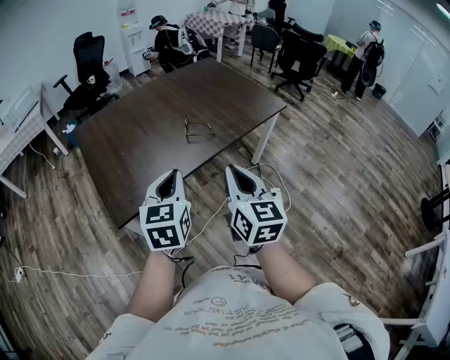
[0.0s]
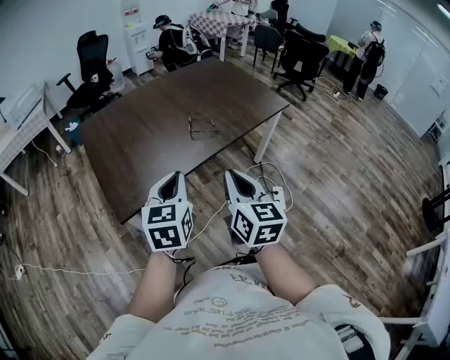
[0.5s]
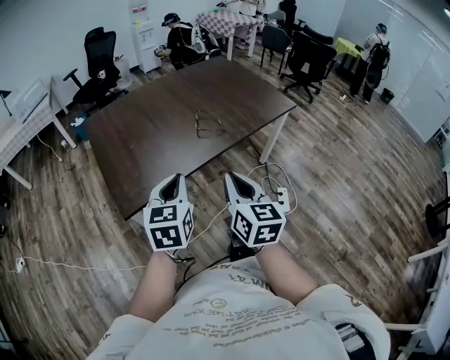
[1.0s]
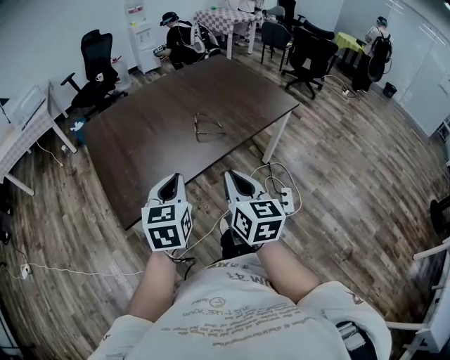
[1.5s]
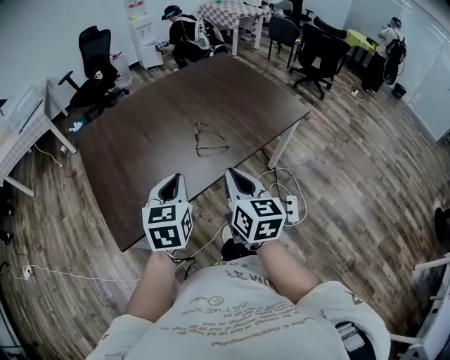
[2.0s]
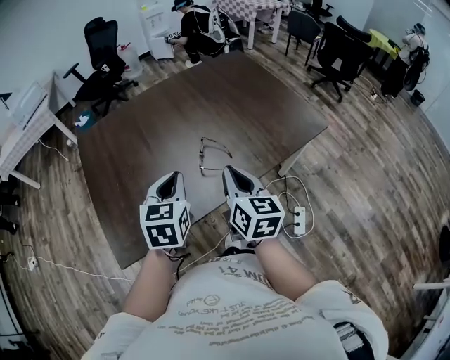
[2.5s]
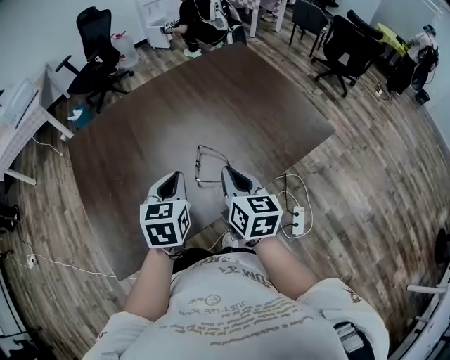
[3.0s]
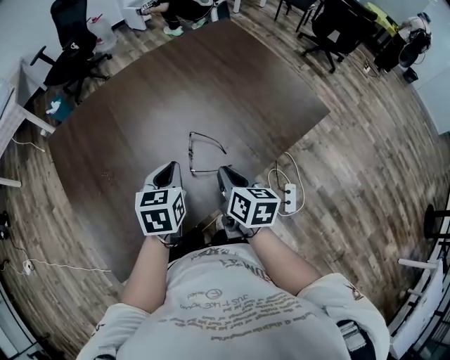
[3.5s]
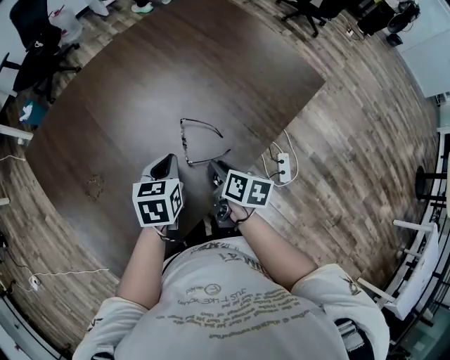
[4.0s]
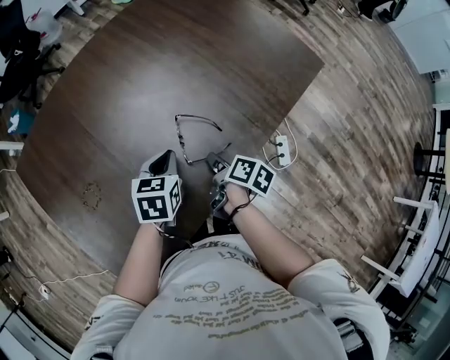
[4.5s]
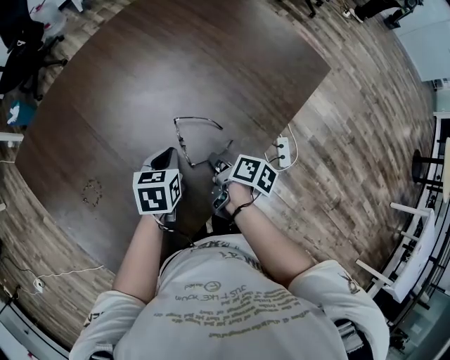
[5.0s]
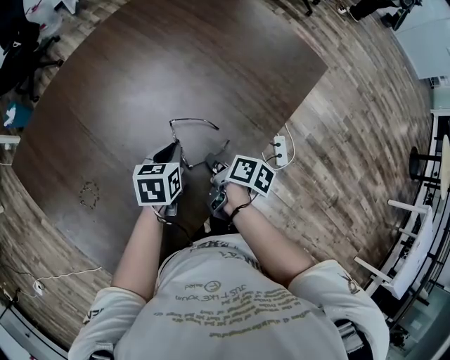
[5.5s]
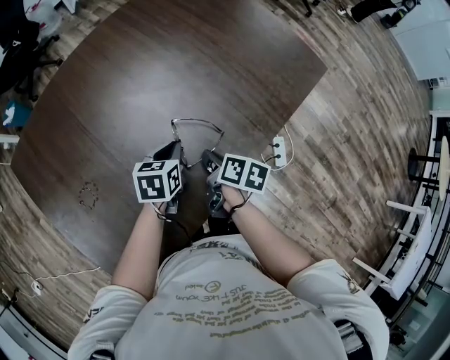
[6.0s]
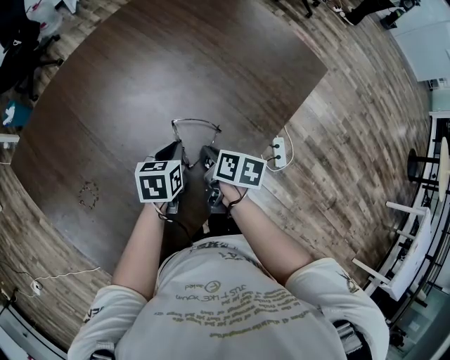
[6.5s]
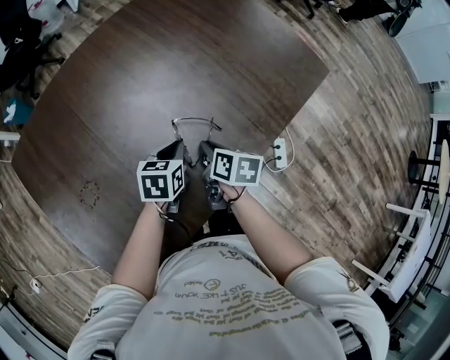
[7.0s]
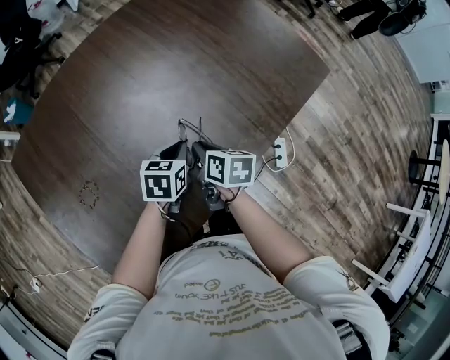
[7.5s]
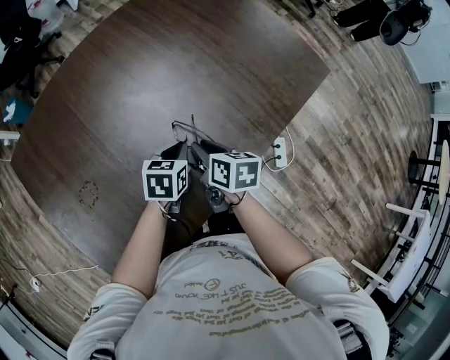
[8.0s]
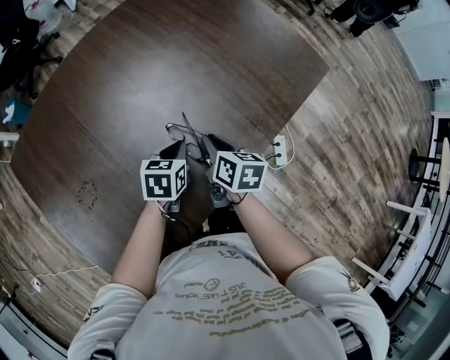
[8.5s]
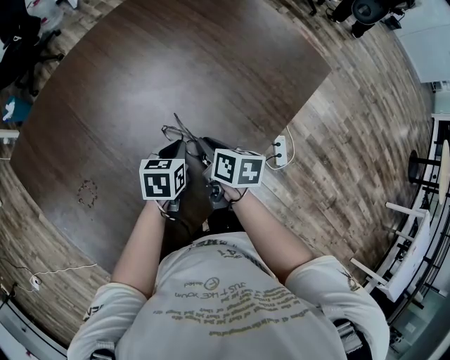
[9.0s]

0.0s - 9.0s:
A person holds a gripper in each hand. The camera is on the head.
0.0s - 2.0s: Both grippers travel together forward and downward, some 15 cm.
2.0s - 4.5s: The right gripper is displaced downward and forward by some 35 cm, rolls clockwise, seen from behind, by approximately 60 degrees, and opens, while the left gripper goes about 35 cm forward and downward, and turns by roughly 30 degrees.
4.5s - 7.0s: The left gripper ends up some 5 cm from where it was, while the right gripper changes place by about 5 cm, and turns by about 30 degrees.
7.0s - 9.0s: The grippers move only a little.

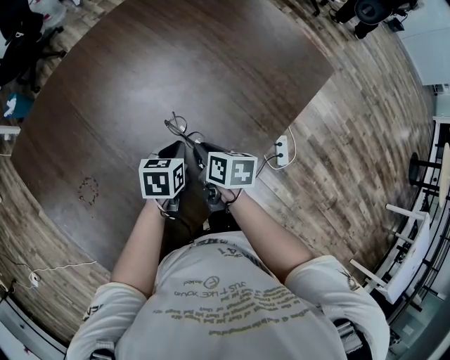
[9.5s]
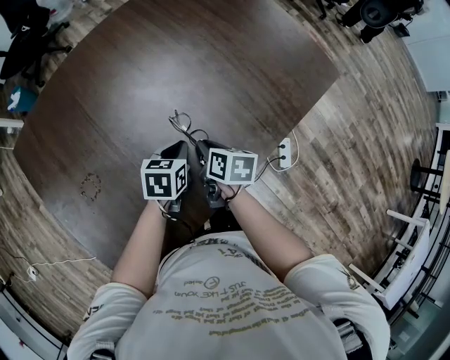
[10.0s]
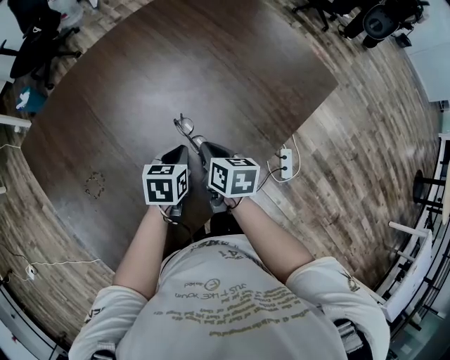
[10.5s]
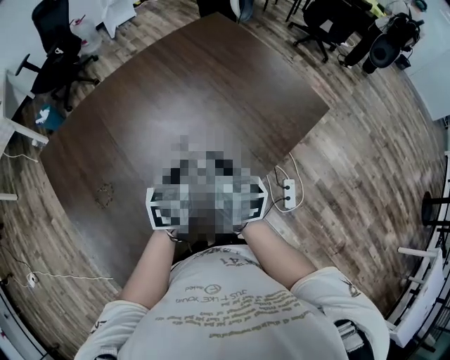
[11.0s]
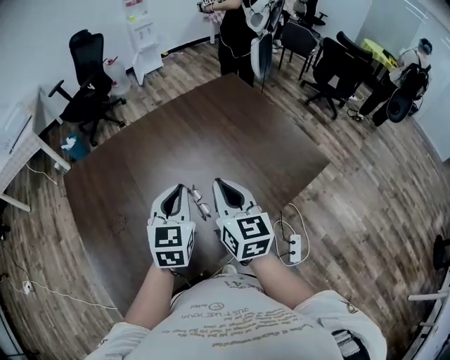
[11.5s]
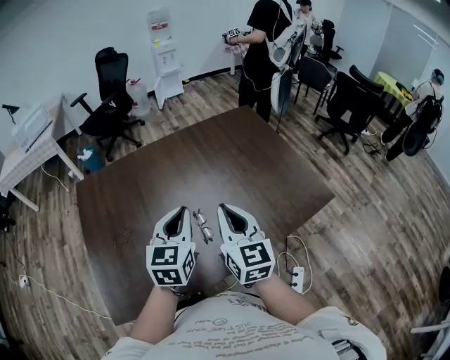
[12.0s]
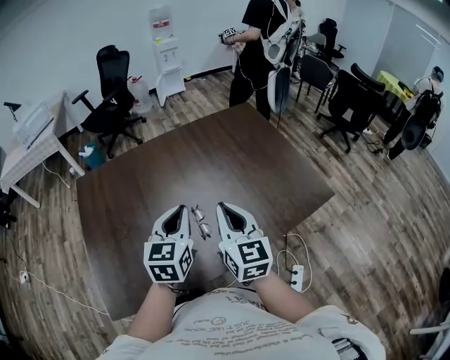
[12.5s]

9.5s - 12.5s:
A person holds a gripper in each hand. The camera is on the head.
9.5s - 11.0s: The grippers both shift upward by some 15 cm. The right gripper rotates some 30 degrees. The left gripper turns by roughly 20 degrees.
11.0s - 12.5s: The grippers both shift upward by about 15 cm. The left gripper changes its angle by approximately 30 degrees. The right gripper turns by about 30 degrees.

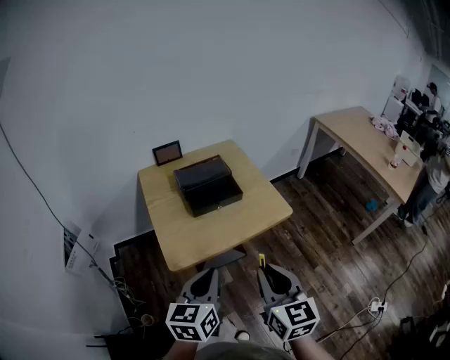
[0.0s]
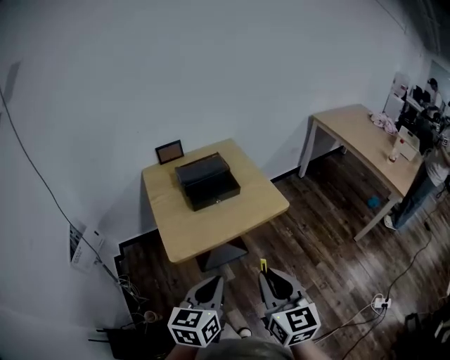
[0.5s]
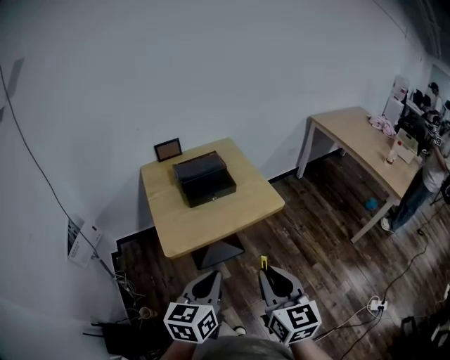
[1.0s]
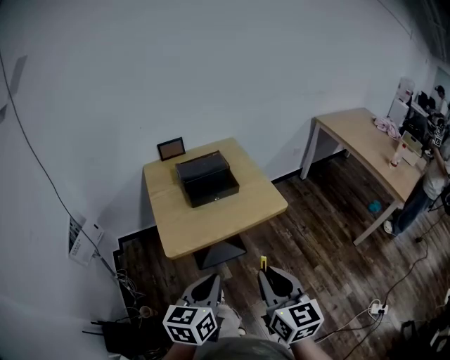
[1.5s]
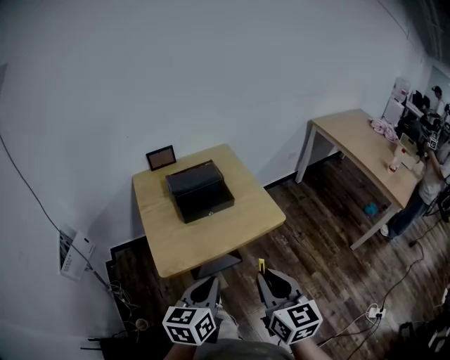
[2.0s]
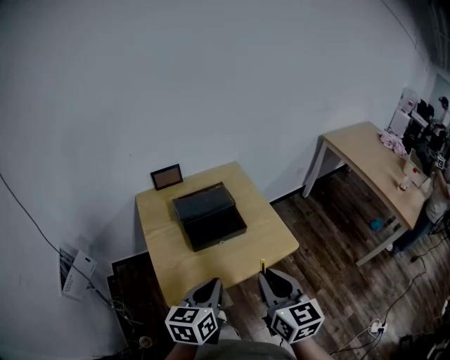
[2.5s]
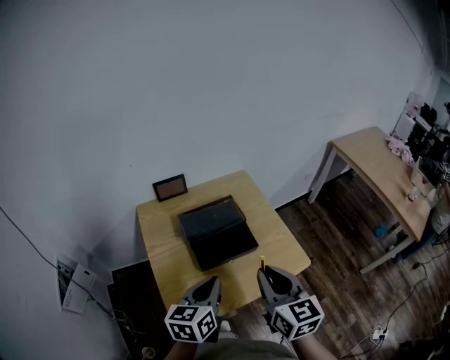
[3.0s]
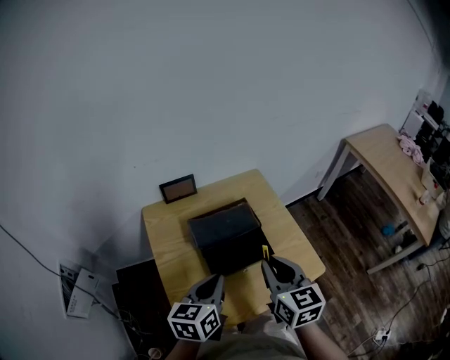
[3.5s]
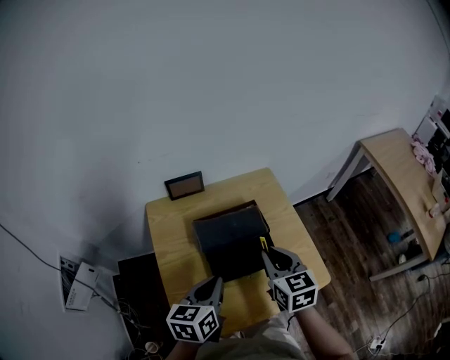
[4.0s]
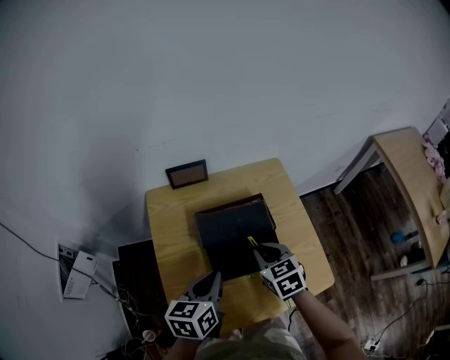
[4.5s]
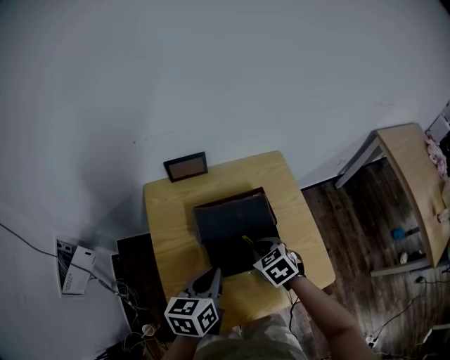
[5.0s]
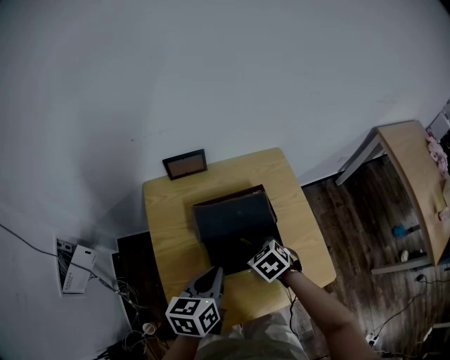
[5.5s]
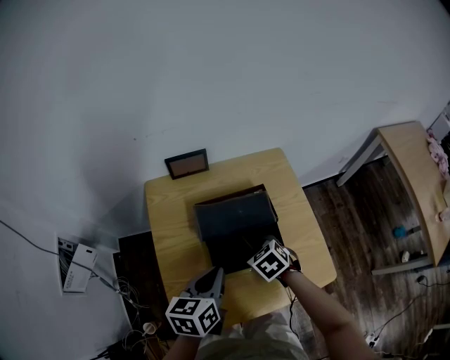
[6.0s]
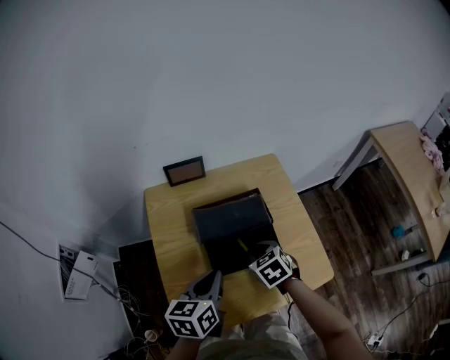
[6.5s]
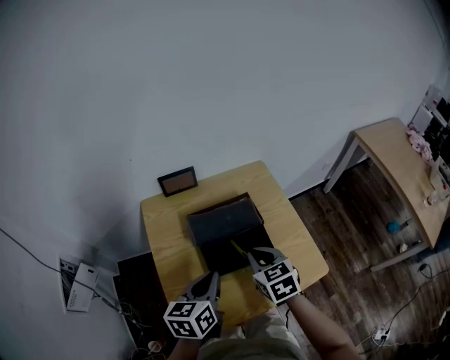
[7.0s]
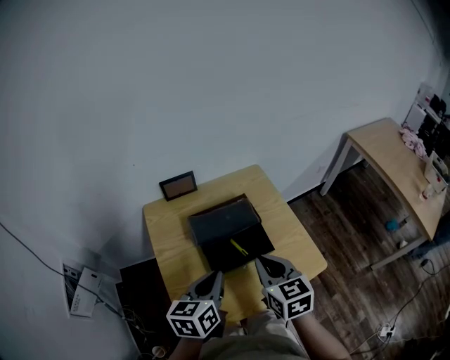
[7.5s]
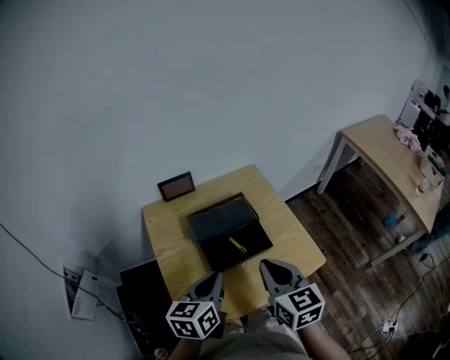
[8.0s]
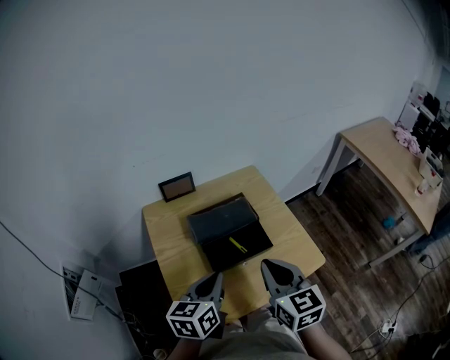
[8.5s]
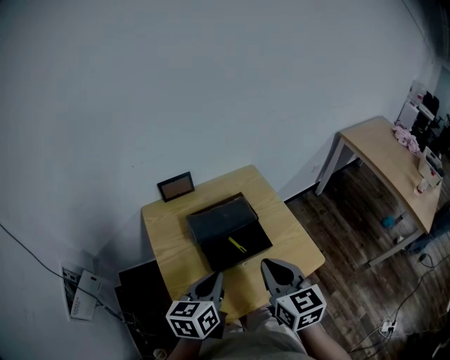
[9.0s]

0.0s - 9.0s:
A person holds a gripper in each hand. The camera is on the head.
0.0s - 2.0s: The right gripper goes backward and returns, roughly 5 cm each way; the left gripper goes backward and returns, approximately 5 cm each way.
2.0s - 4.5s: The left gripper shifts approximately 30 cm forward, while the right gripper moves forward and downward, about 40 cm, and turns by some 40 degrees.
4.5s - 7.0s: The right gripper reaches roughly 10 cm downward, then returns.
7.0s - 9.0s: The right gripper travels upward and backward by about 15 cm, and swivels approximately 20 degrees.

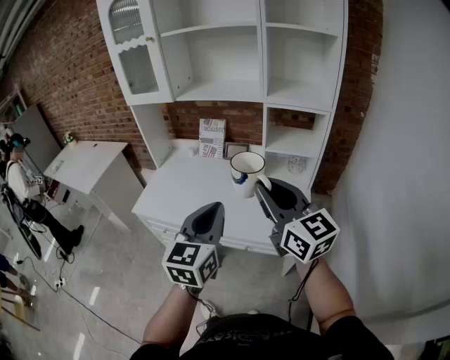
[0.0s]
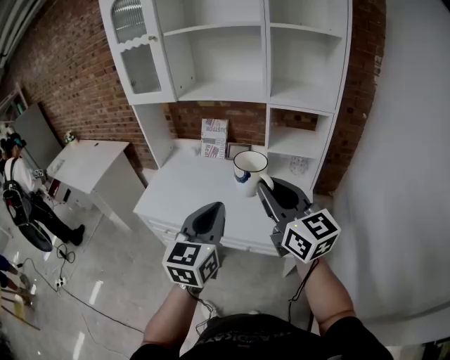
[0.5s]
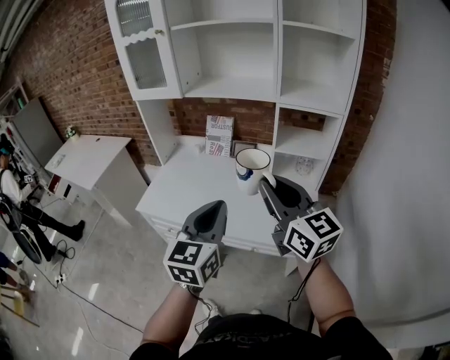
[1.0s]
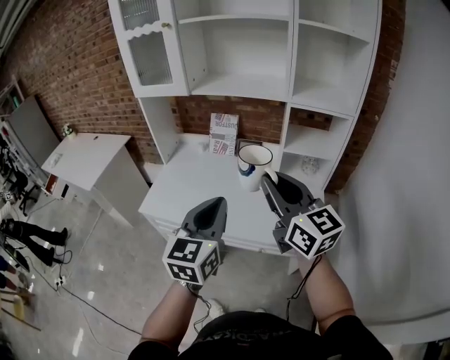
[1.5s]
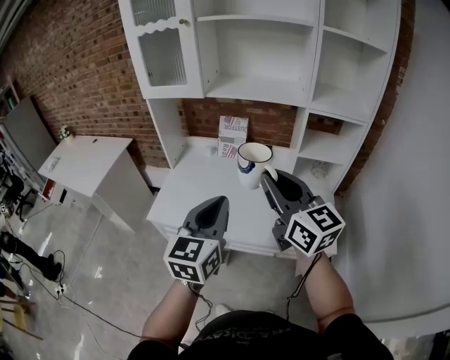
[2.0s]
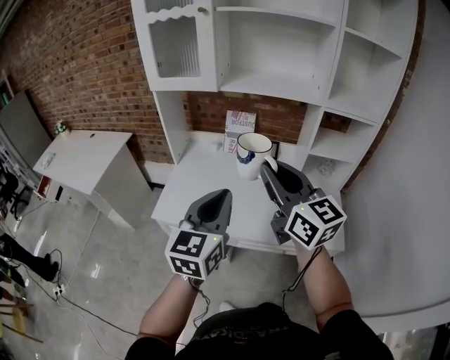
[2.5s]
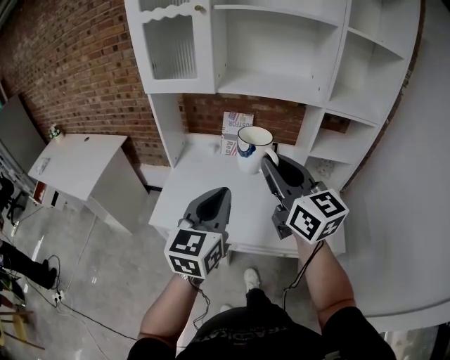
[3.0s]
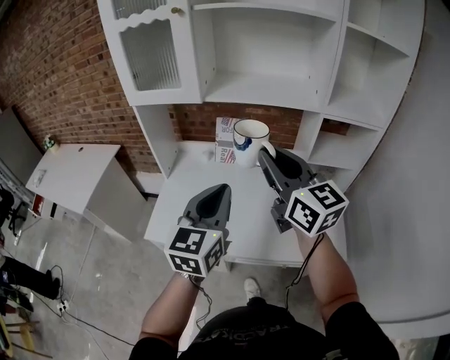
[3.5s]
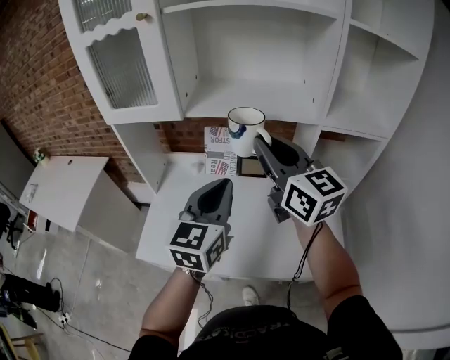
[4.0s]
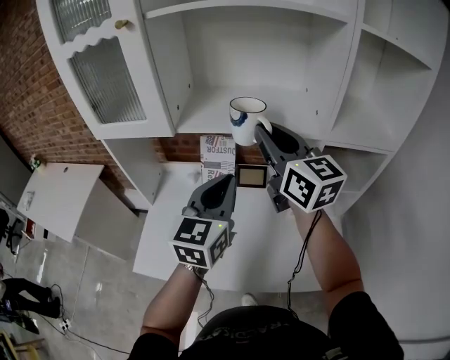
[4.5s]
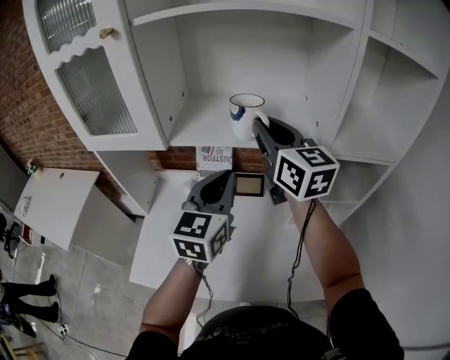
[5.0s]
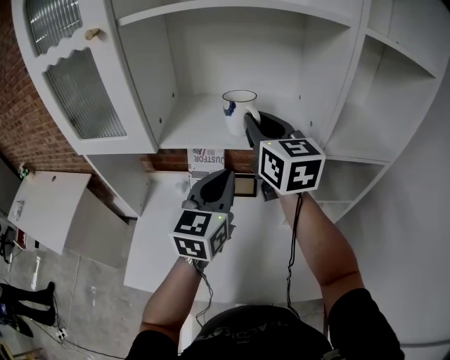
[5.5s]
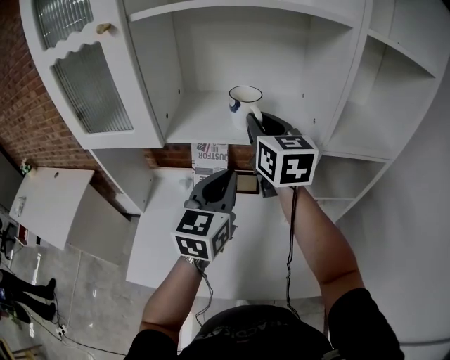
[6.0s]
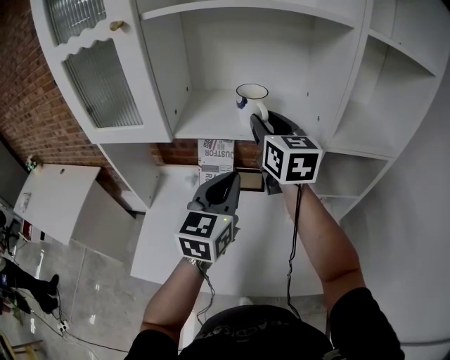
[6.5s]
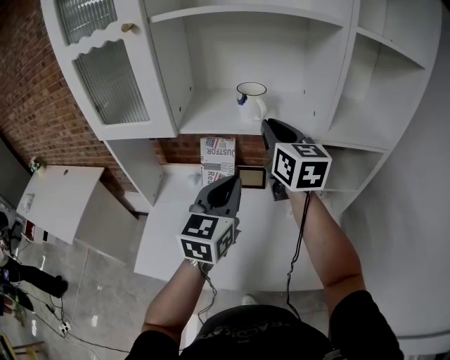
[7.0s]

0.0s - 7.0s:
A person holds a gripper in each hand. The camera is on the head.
0.0s - 2.0s: The grippers both shift to the left and forward by roughly 20 cm.
2.0s - 3.5s: The two grippers go roughly 15 cm forward.
3.5s - 5.0s: The grippers both shift forward by about 25 cm.
5.0s - 7.0s: The left gripper travels backward by roughly 5 cm.
